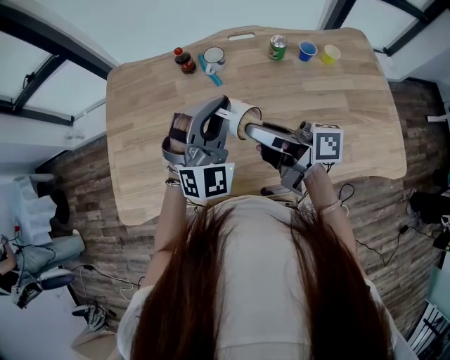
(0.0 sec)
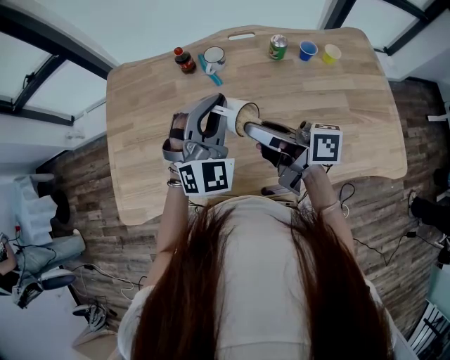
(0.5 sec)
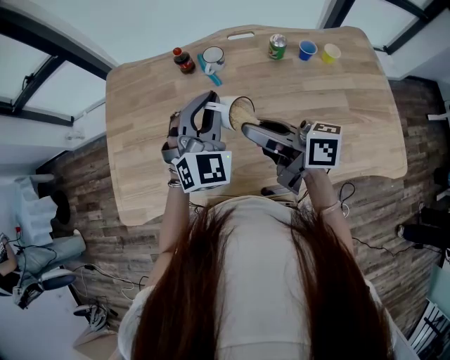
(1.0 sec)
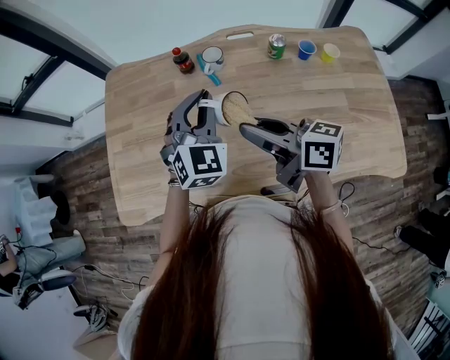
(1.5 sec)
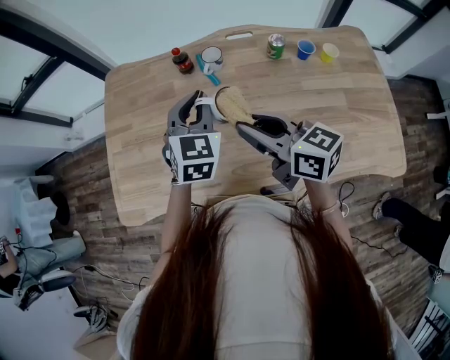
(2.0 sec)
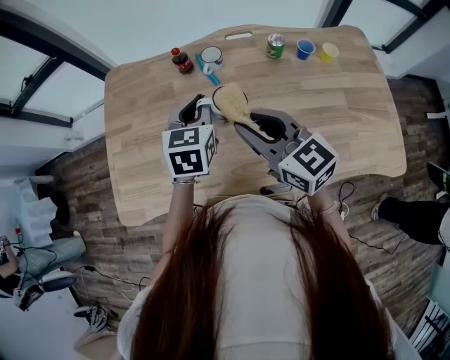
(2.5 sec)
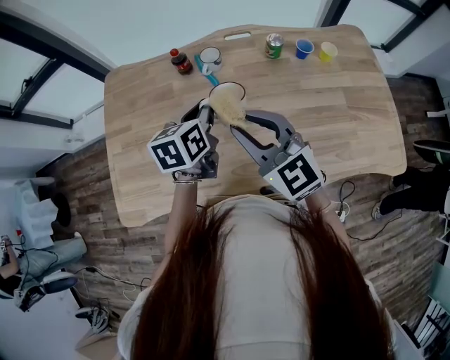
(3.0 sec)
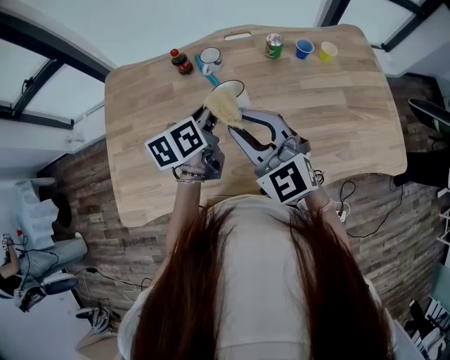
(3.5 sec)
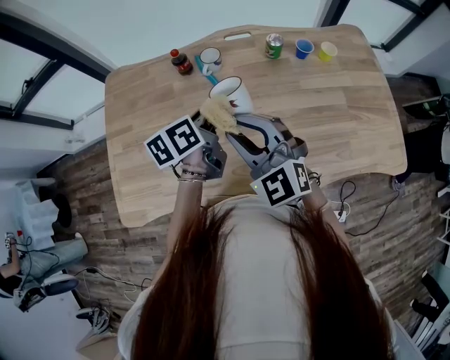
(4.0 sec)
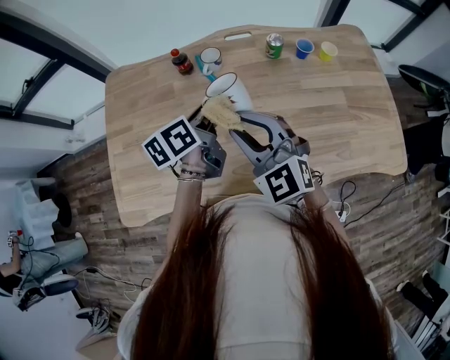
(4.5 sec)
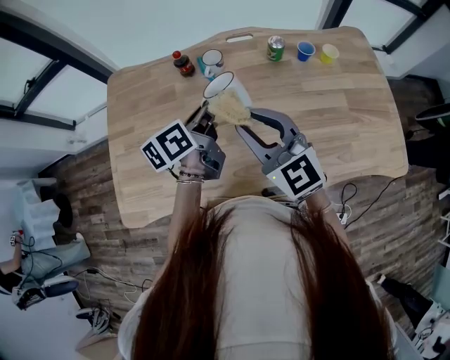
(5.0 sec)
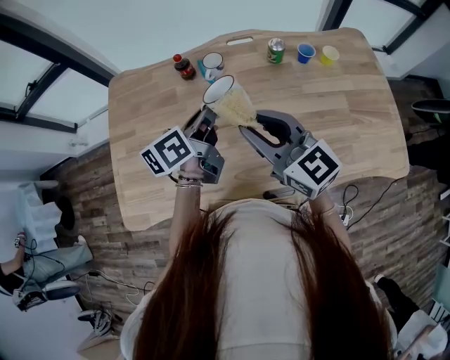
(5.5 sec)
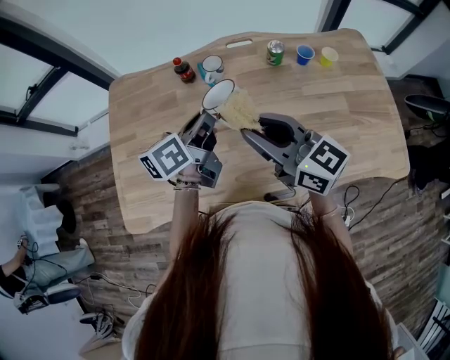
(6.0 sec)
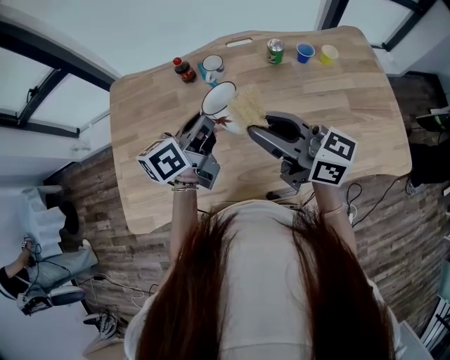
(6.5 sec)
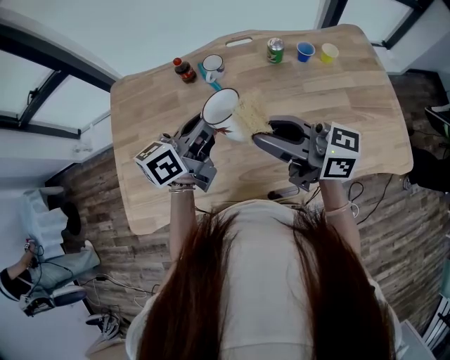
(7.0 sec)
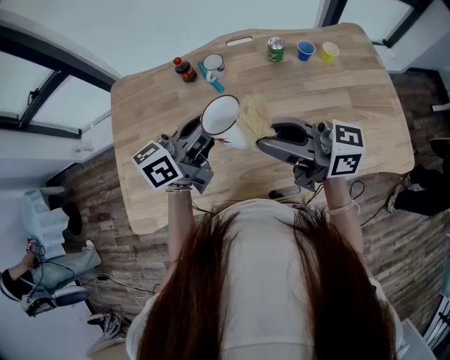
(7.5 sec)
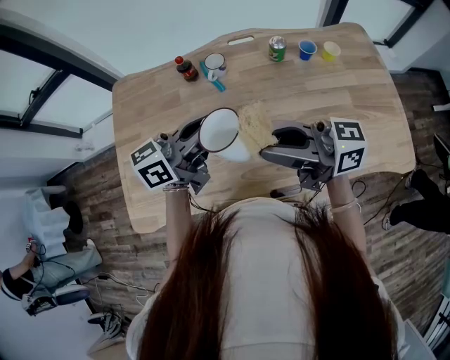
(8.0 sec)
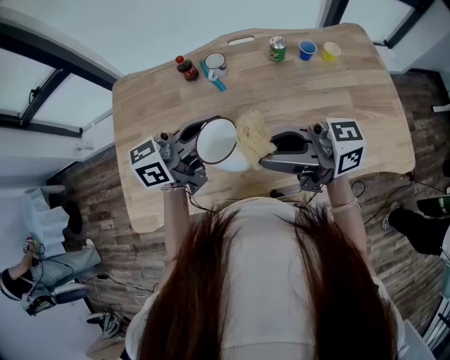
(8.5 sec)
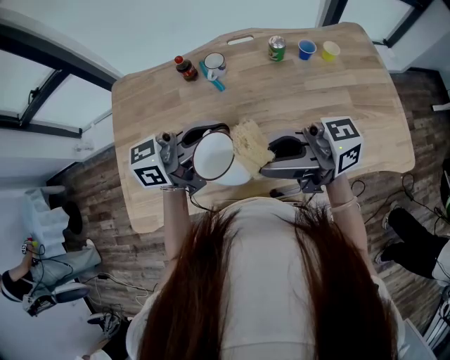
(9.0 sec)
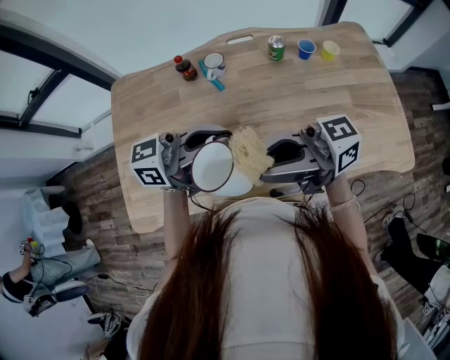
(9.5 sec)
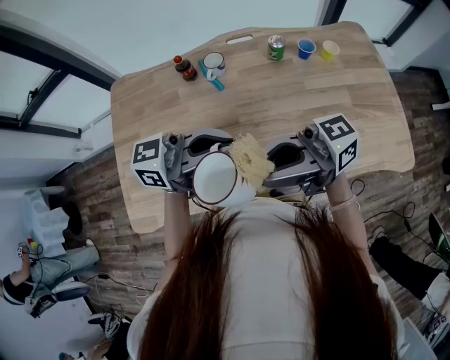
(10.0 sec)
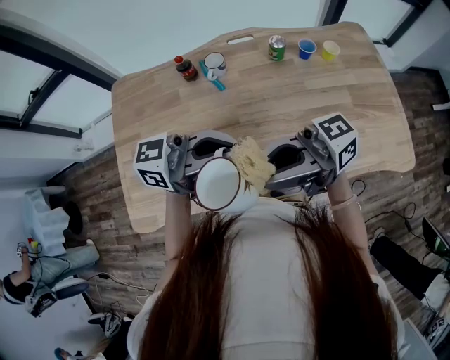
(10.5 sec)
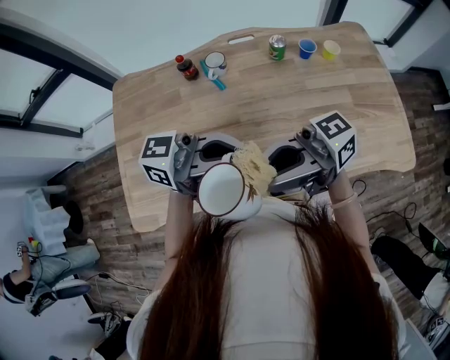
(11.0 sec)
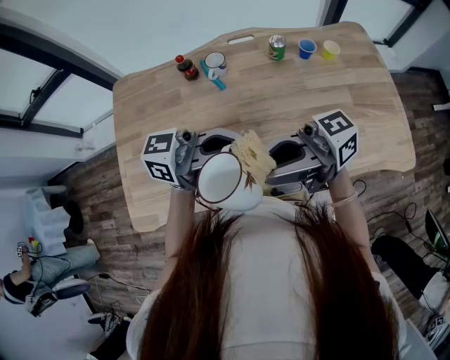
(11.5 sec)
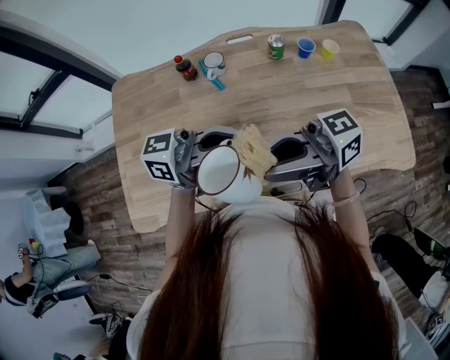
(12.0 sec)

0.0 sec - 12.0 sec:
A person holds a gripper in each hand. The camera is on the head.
0.0 sec - 2.0 sec: The left gripper heads forward, covering roughly 5 cm, and turns by some 40 degrees; the right gripper changes its angle by some 40 degrees.
2.0 sec - 4.0 sec: The right gripper rotates around the line of its fingers by about 60 degrees, counterclockwise from behind. Meanwhile the left gripper twists approximately 60 degrees counterclockwise, seen from behind.
4.0 sec - 6.0 sec: The right gripper ends up roughly 5 cm from where it was, and twists approximately 50 degrees clockwise, seen from behind.
6.0 sec - 8.0 sec: The left gripper ends up about 5 cm from where it was, and rotates approximately 30 degrees. The right gripper changes place by approximately 5 cm, and swivels approximately 40 degrees.
8.0 sec - 10.0 sec: The left gripper changes place by some 10 cm, and rotates some 30 degrees. The right gripper moves about 5 cm, and turns by some 20 degrees.
10.0 sec - 12.0 sec: The grippers stay close to where they were, moving slightly.

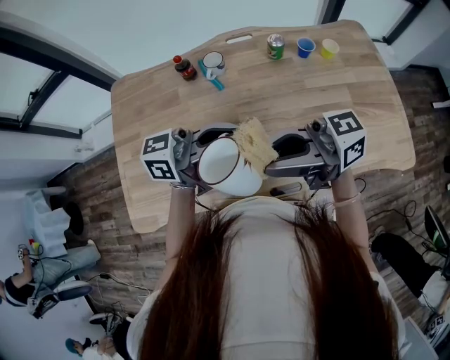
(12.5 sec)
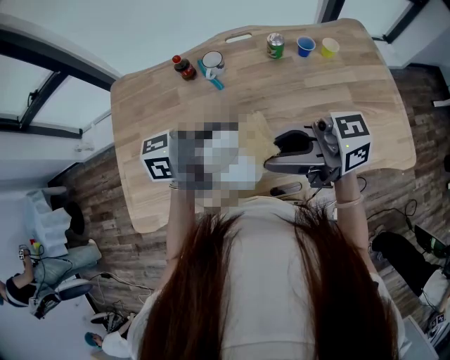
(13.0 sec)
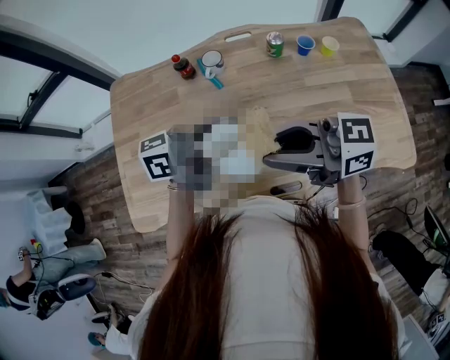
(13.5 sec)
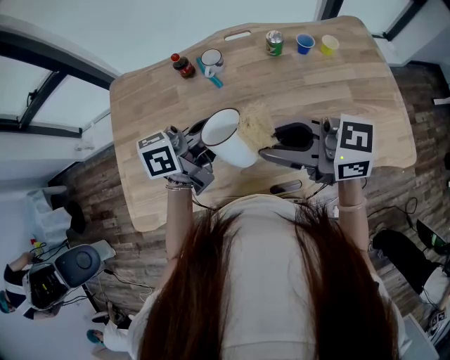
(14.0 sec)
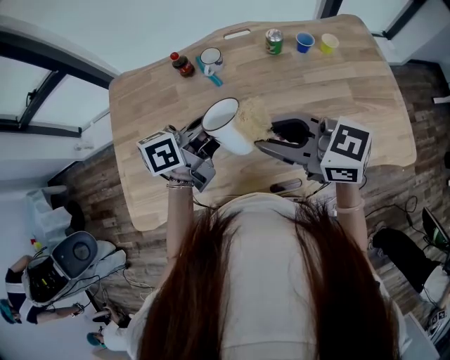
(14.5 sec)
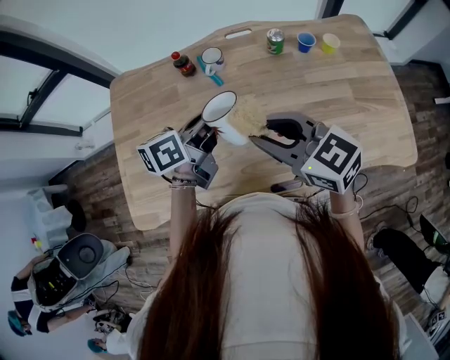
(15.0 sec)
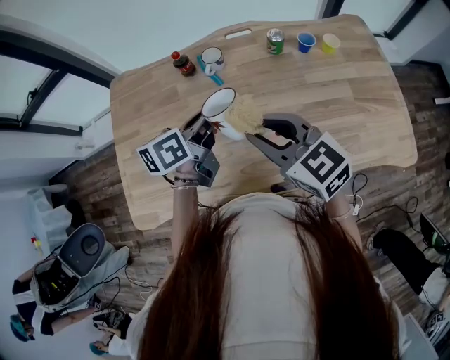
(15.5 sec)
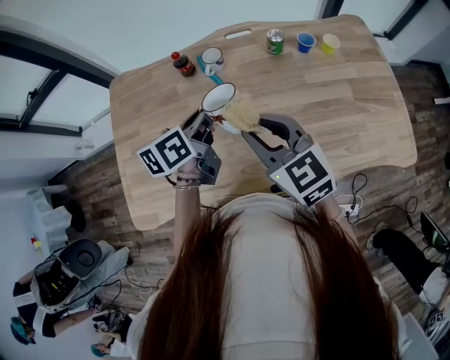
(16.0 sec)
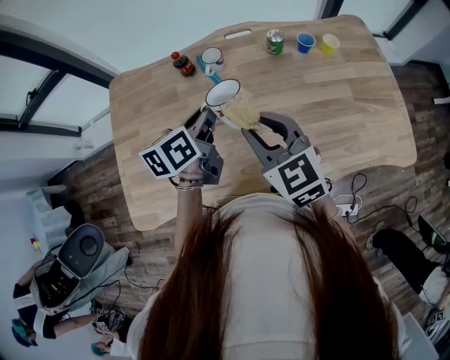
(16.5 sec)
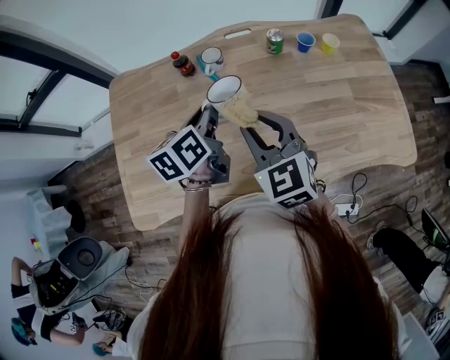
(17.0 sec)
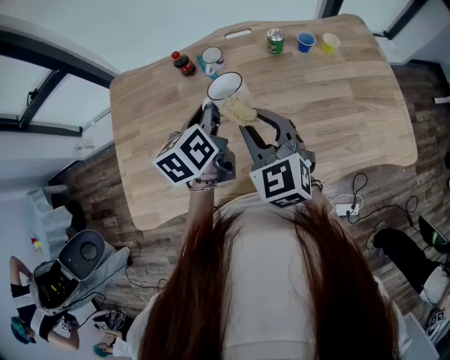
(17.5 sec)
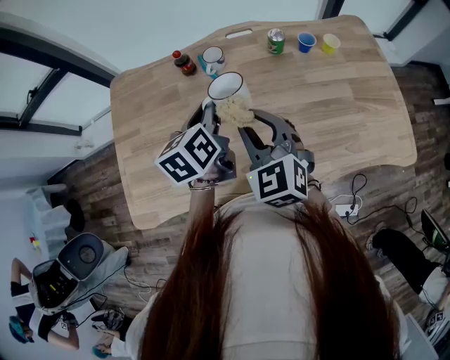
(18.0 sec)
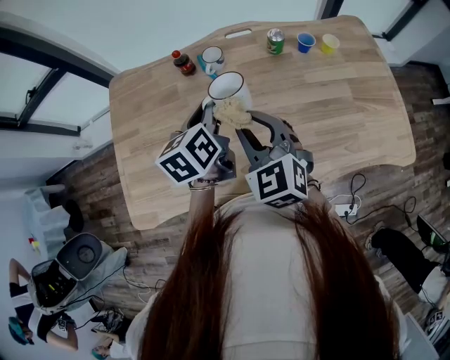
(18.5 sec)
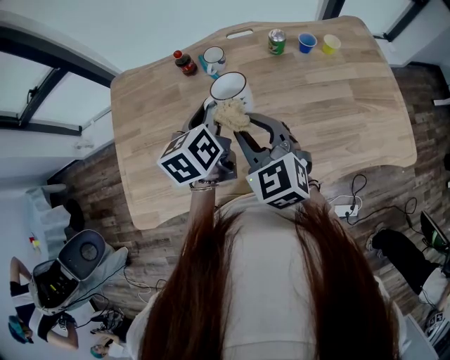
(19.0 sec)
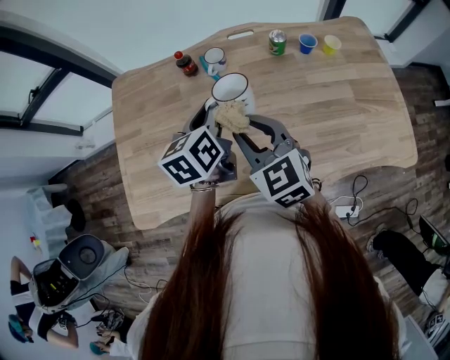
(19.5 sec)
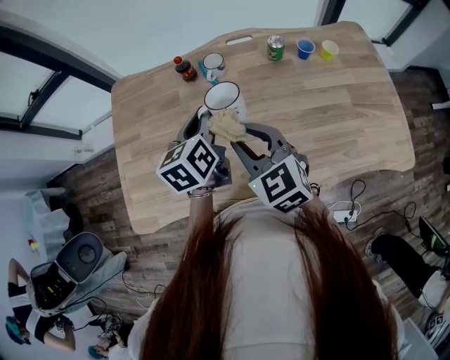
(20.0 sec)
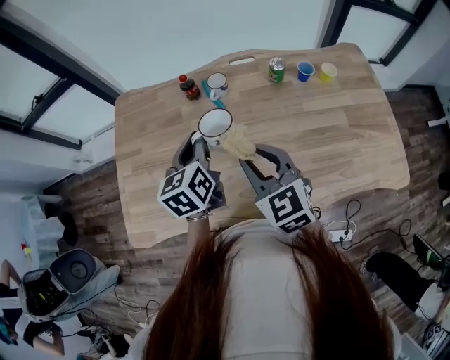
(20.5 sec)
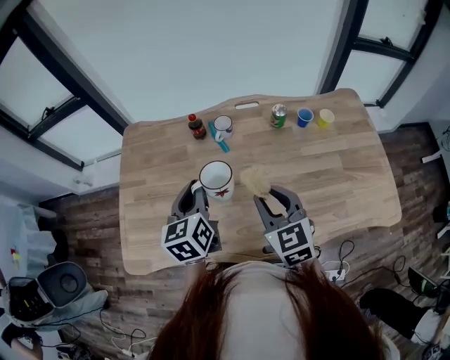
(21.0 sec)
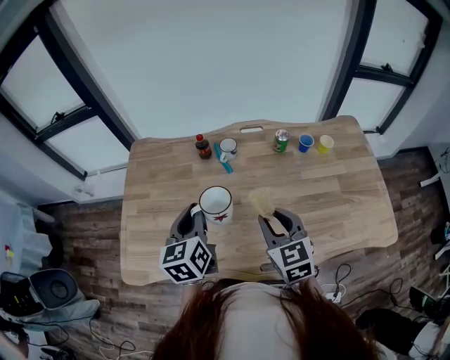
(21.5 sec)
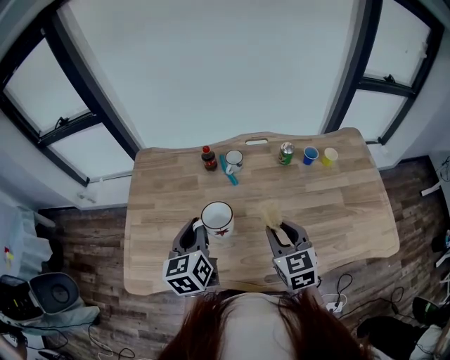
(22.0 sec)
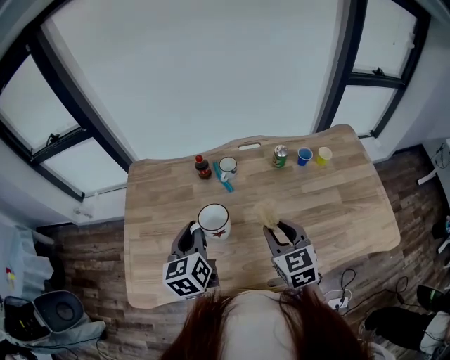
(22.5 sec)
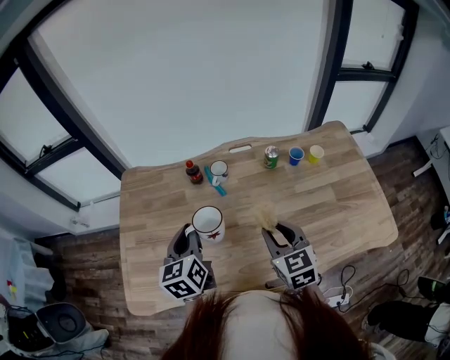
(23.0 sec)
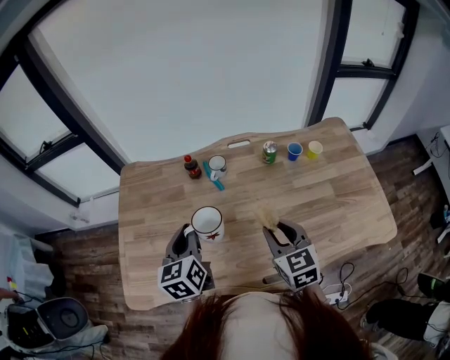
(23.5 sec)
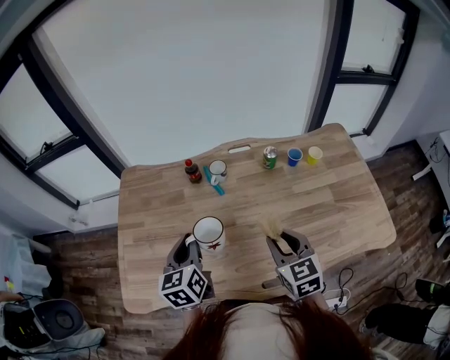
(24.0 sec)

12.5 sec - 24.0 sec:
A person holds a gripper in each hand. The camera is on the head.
12.5 sec - 14.5 sec: The right gripper moves about 5 cm, and rotates approximately 40 degrees. Meanwhile the left gripper ends up roughly 10 cm from where it was, and rotates about 40 degrees.
14.5 sec - 16.5 sec: The left gripper shifts by roughly 5 cm, and swivels roughly 30 degrees. Meanwhile the right gripper ends up approximately 5 cm from where it was, and turns by some 40 degrees.
16.5 sec - 20.0 sec: The grippers move only a little.
20.0 sec - 22.0 sec: The left gripper is displaced to the left and backward by some 10 cm; the right gripper travels to the right by approximately 5 cm.
22.0 sec - 24.0 sec: The grippers make only small movements.

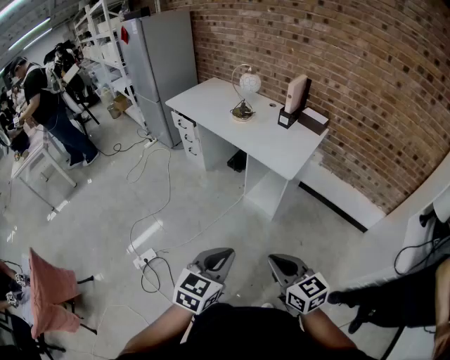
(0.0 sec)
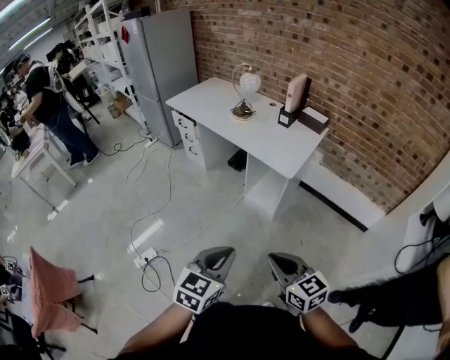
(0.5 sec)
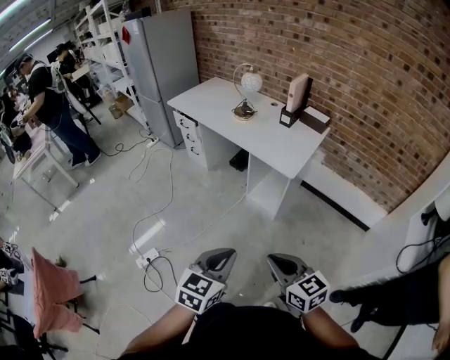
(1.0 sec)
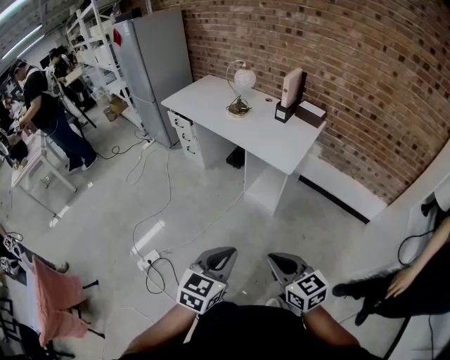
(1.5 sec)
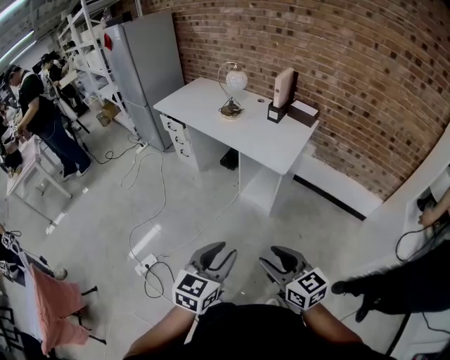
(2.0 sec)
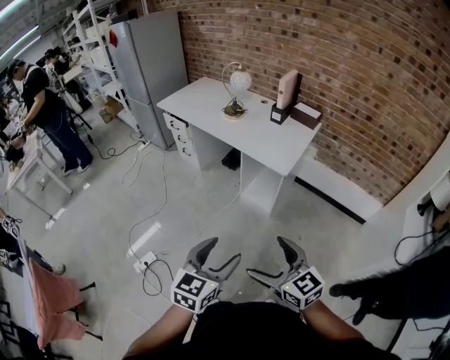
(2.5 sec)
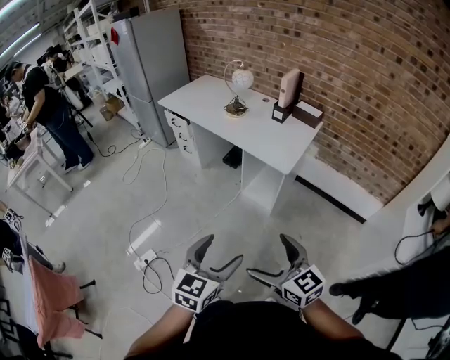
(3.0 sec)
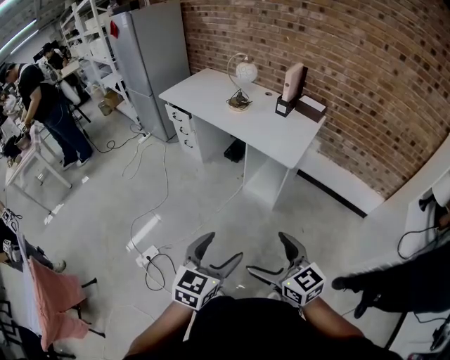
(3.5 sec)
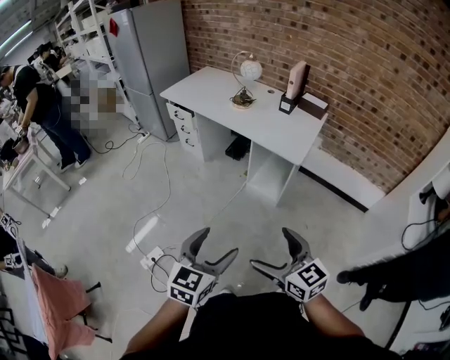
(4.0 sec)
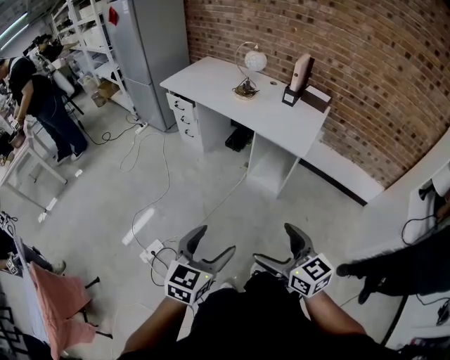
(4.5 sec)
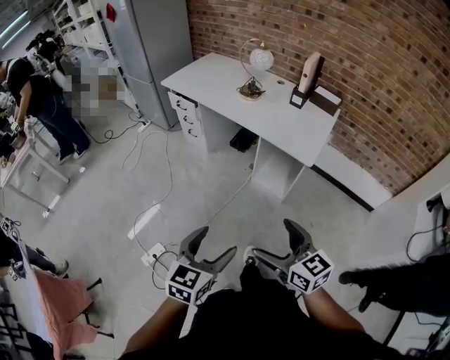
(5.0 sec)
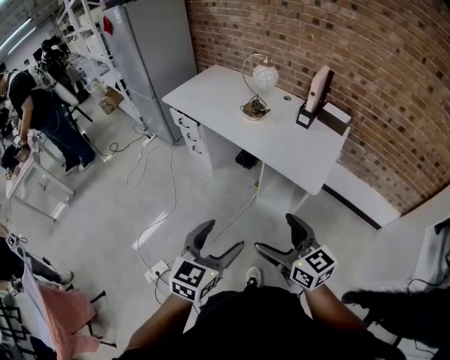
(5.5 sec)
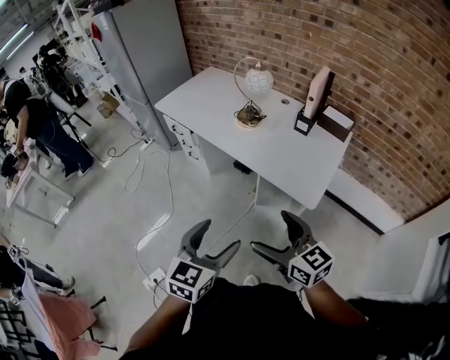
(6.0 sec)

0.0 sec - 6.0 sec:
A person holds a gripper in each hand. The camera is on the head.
0.0 sec - 2.0 sec: The grippers stay close to where they were, moving slightly.
2.0 sec - 4.0 sec: The two grippers go some 10 cm to the left. The left gripper opens its fingers, while the right gripper opens.
4.0 sec - 6.0 sec: The two grippers go approximately 30 cm forward.